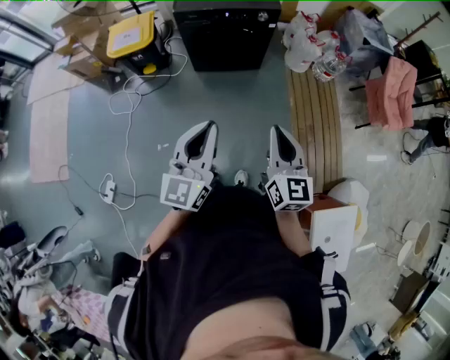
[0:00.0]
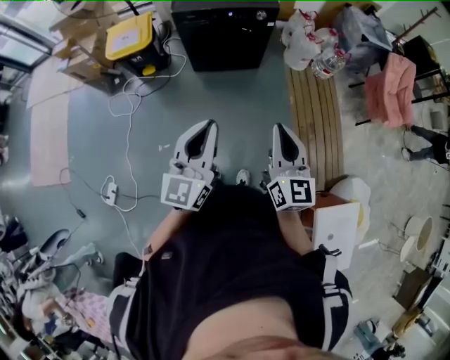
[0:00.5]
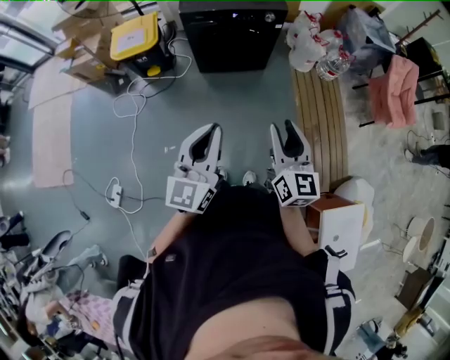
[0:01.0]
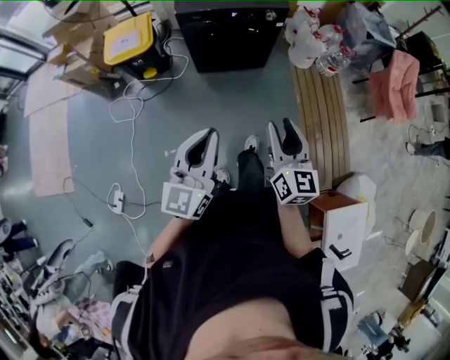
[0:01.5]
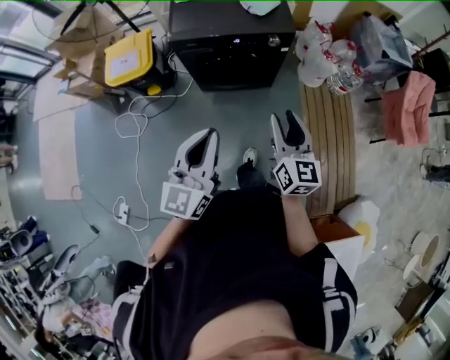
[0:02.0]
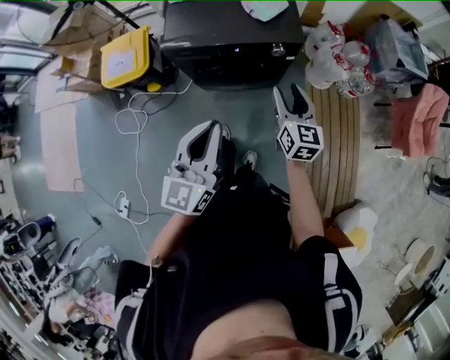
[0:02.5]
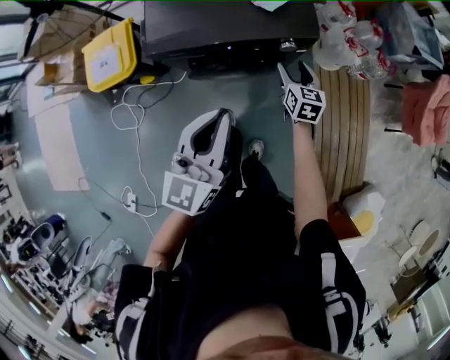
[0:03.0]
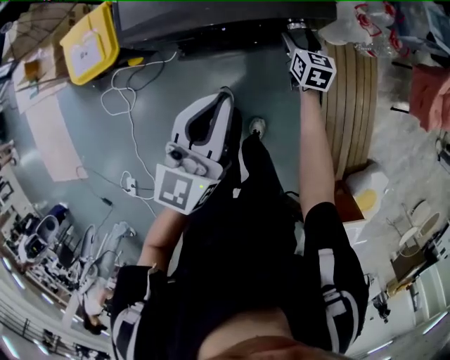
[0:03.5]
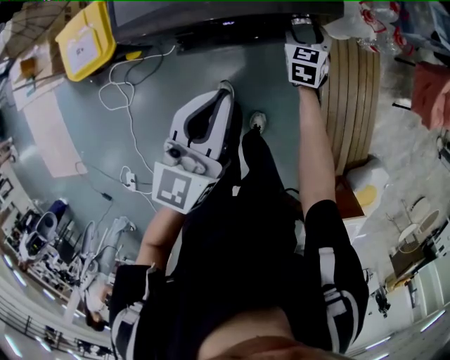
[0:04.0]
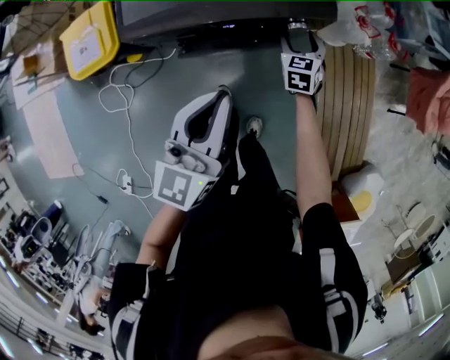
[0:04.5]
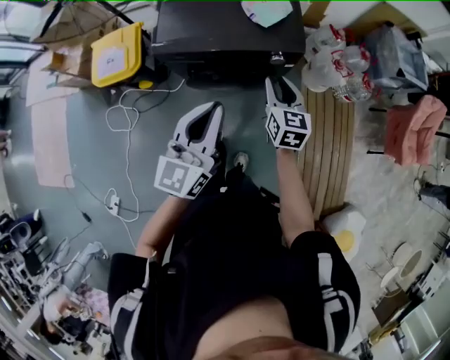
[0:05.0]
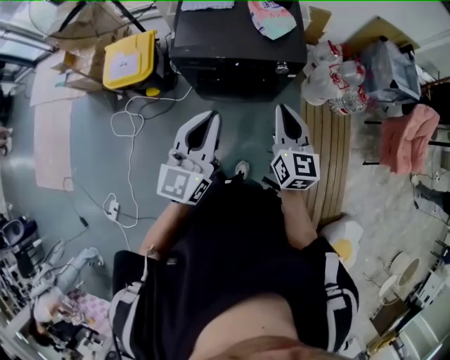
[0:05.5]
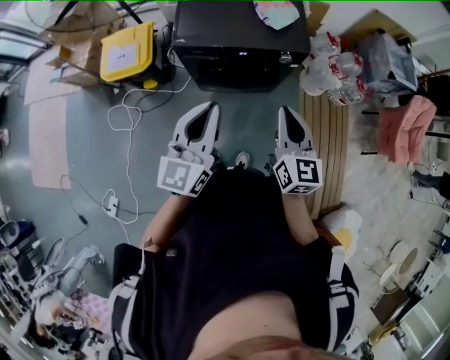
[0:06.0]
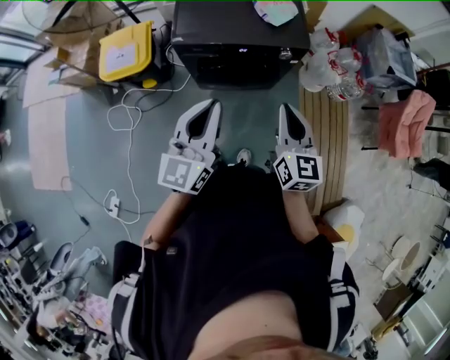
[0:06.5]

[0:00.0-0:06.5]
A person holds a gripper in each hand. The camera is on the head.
0:00.0 to 0:02.0: The grippers both shift forward by about 35 cm. The right gripper opens.
0:02.0 to 0:04.5: The two grippers travel together, forward, some 50 cm. The right gripper travels downward by some 40 cm, angles its fingers downward, by approximately 30 degrees, and opens its fingers. Meanwhile the left gripper moves downward, approximately 20 cm.
0:04.5 to 0:06.5: The left gripper is displaced backward and upward by roughly 30 cm. The right gripper moves upward and backward, about 60 cm, changes its angle by some 30 degrees, and closes.

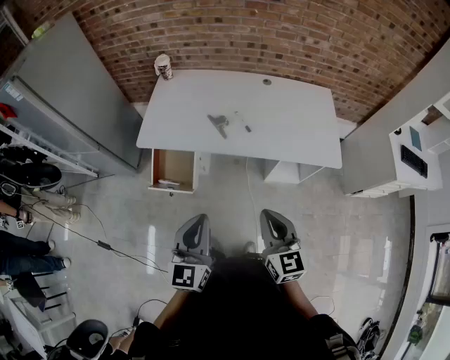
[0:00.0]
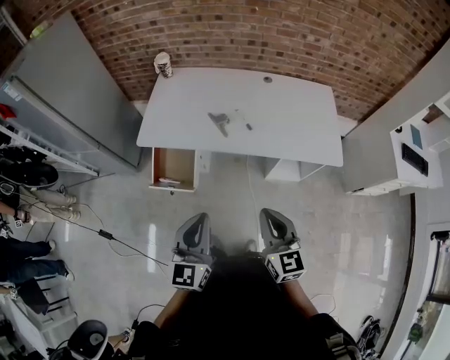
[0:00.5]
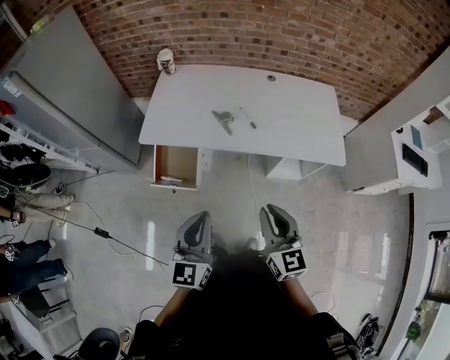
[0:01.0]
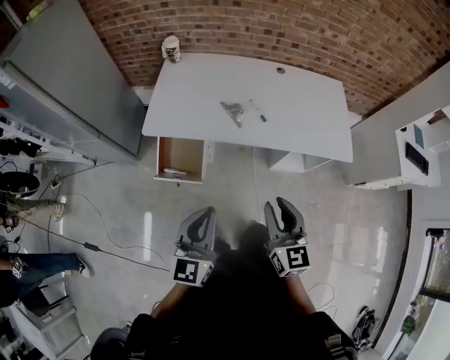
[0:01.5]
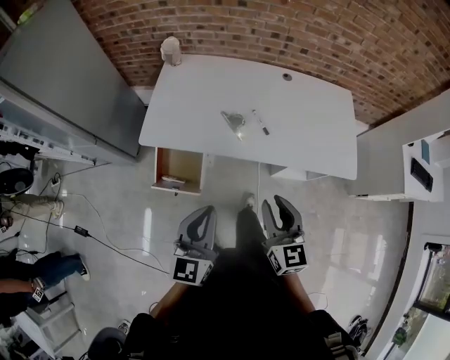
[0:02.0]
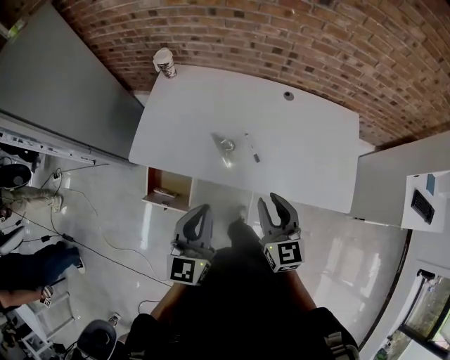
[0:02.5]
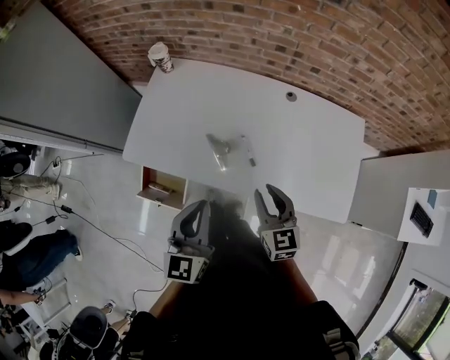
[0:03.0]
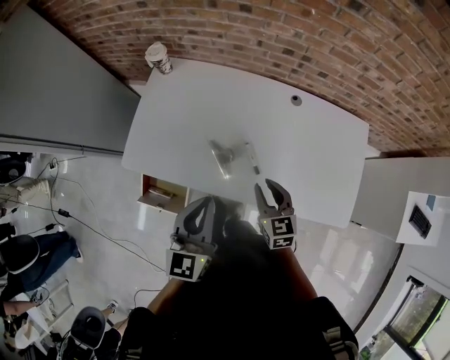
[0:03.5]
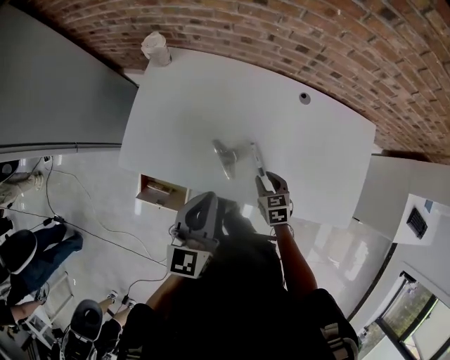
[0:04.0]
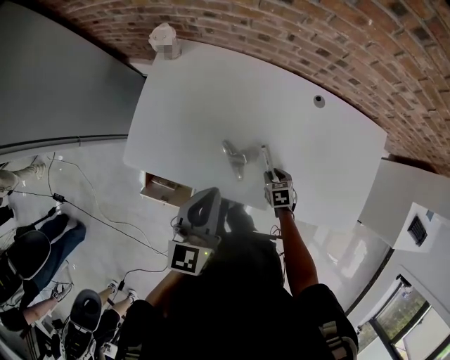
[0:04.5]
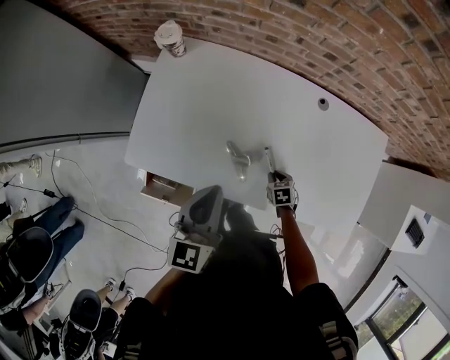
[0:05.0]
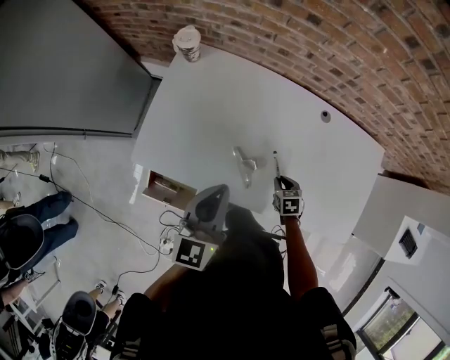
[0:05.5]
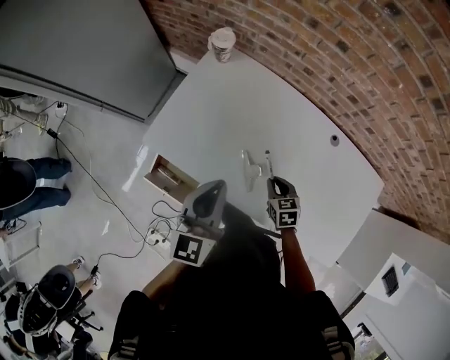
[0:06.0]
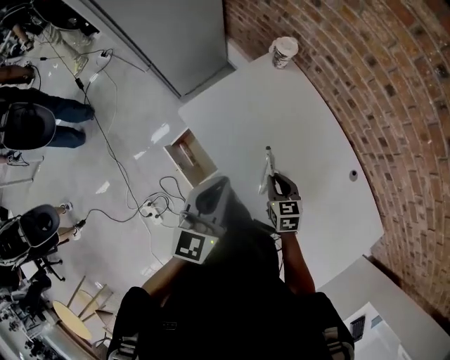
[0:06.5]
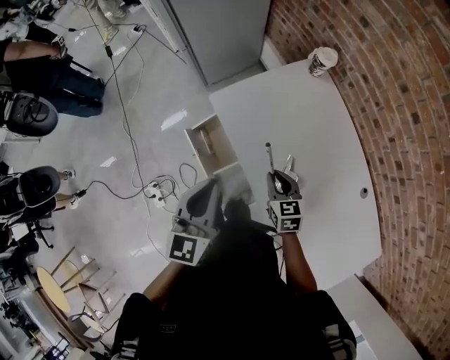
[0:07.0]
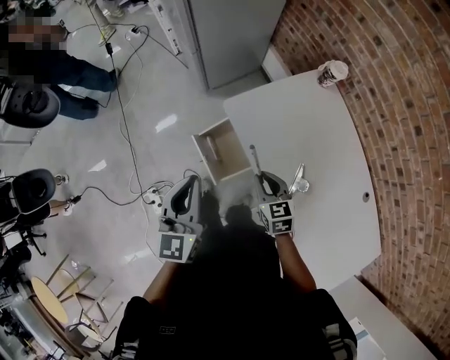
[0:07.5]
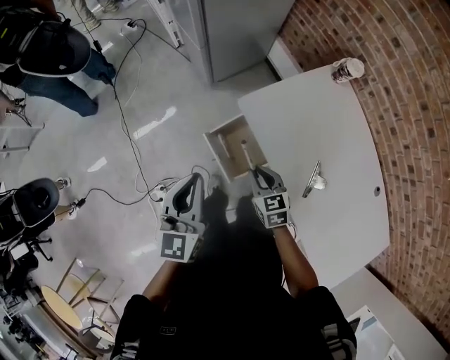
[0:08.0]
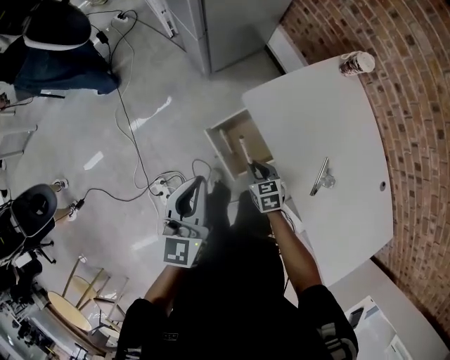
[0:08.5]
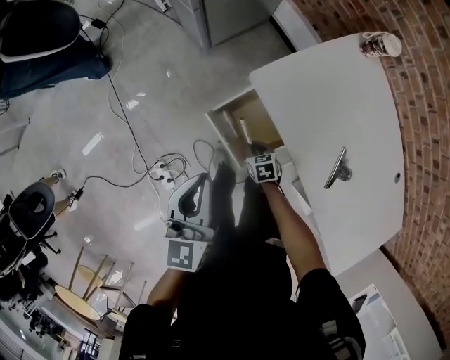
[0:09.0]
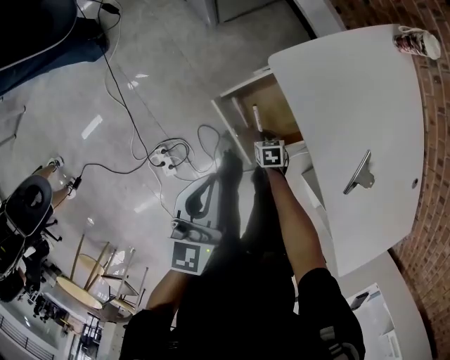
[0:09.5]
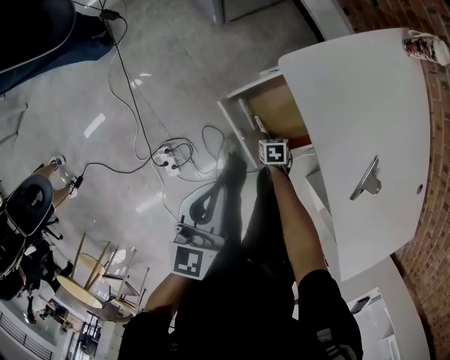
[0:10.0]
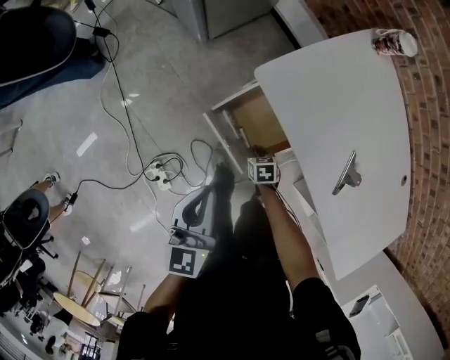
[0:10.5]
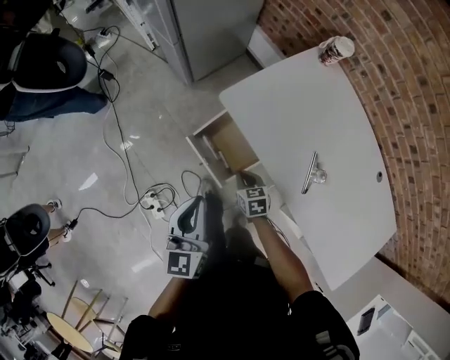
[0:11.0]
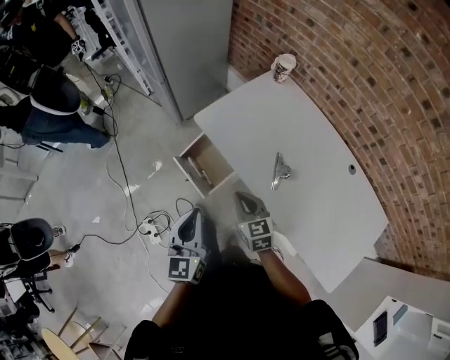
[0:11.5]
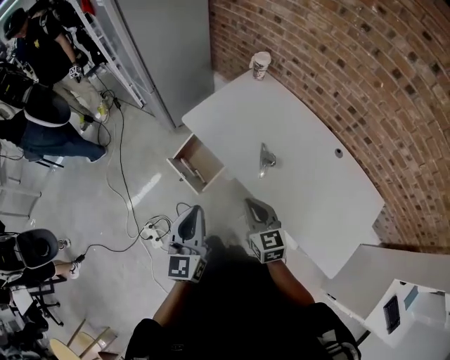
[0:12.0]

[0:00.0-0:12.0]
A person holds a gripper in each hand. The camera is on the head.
0:00.0 to 0:02.0: The left gripper travels forward by about 10 cm; the right gripper heads forward and to the left, covering roughly 15 cm, and opens up.
0:02.0 to 0:04.0: The left gripper shifts approximately 30 cm forward, while the right gripper travels forward and downward by approximately 40 cm, and tips its fingers downward by some 40 degrees.
0:04.0 to 0:06.0: The right gripper travels to the left and forward by approximately 10 cm, and moves approximately 15 cm downward and comes back. Meanwhile the left gripper moves to the left, about 5 cm.
0:06.0 to 0:08.0: The left gripper changes place by some 35 cm, and changes its angle by roughly 40 degrees. Meanwhile the right gripper changes place by approximately 40 cm, and rotates about 40 degrees.
0:08.0 to 0:10.0: The left gripper goes some 20 cm downward, while the right gripper goes approximately 40 cm downward, and tilts its fingers about 30 degrees downward.
0:10.0 to 0:12.0: The right gripper moves upward, about 50 cm, and tips its fingers upward by approximately 50 degrees, while the left gripper changes place by roughly 35 cm, and rotates about 20 degrees.

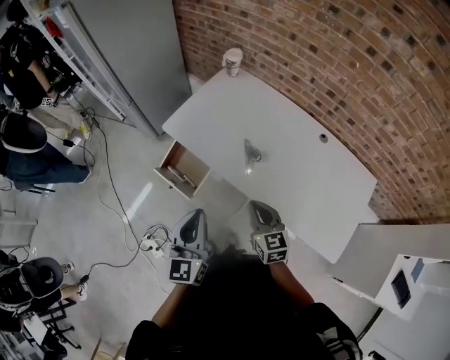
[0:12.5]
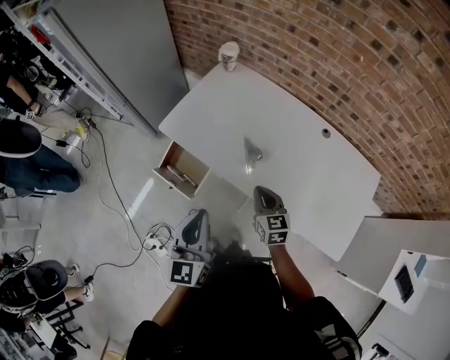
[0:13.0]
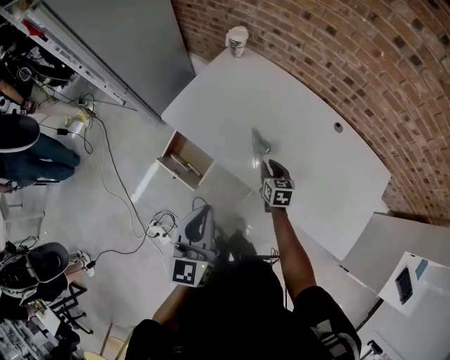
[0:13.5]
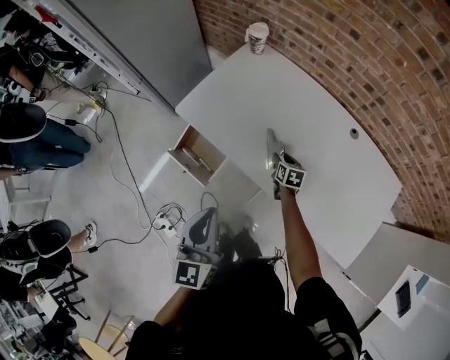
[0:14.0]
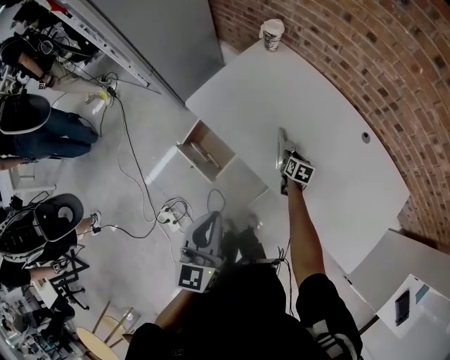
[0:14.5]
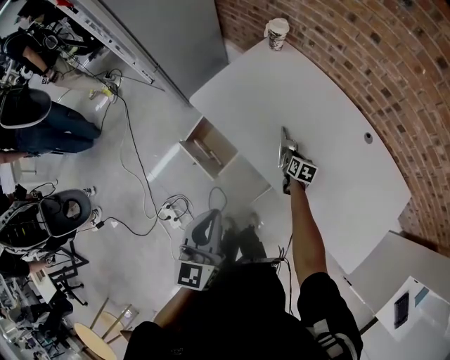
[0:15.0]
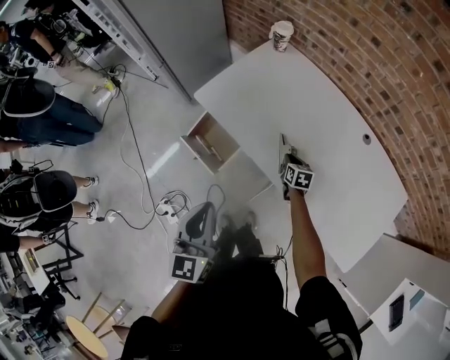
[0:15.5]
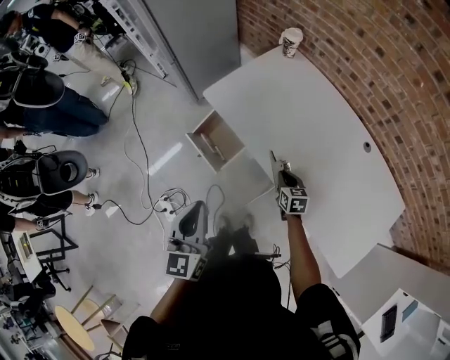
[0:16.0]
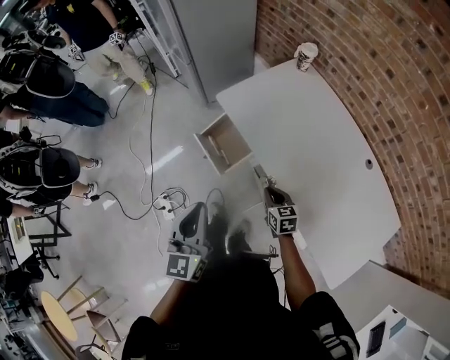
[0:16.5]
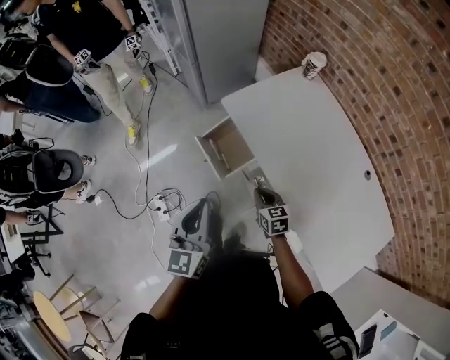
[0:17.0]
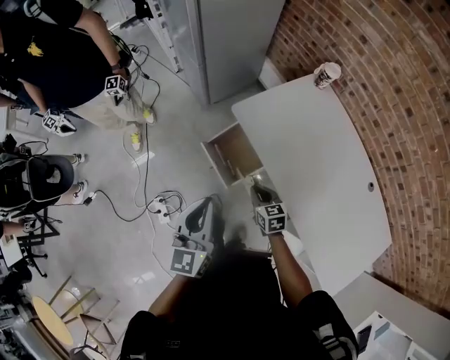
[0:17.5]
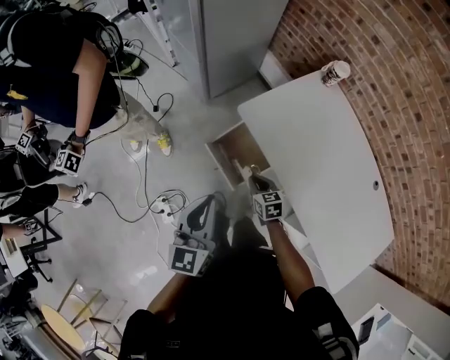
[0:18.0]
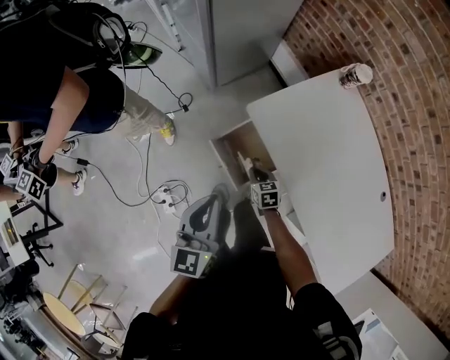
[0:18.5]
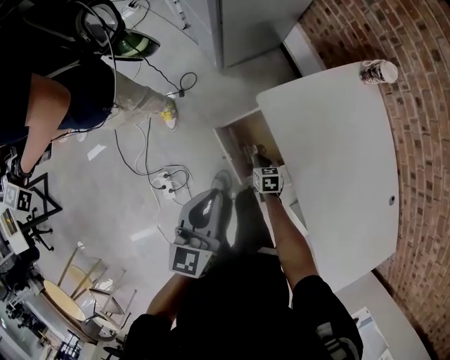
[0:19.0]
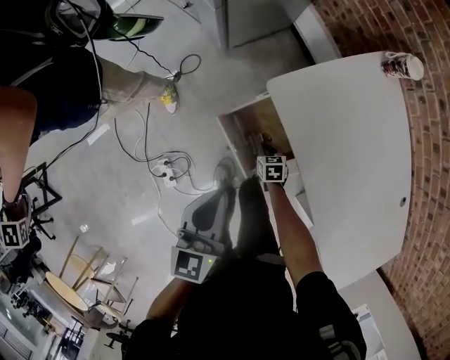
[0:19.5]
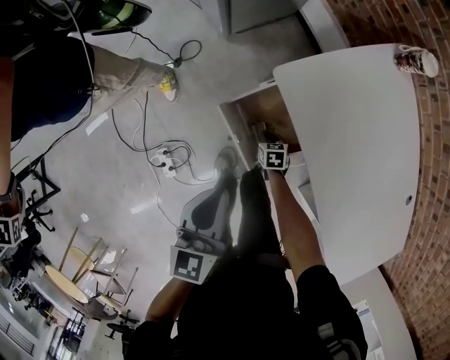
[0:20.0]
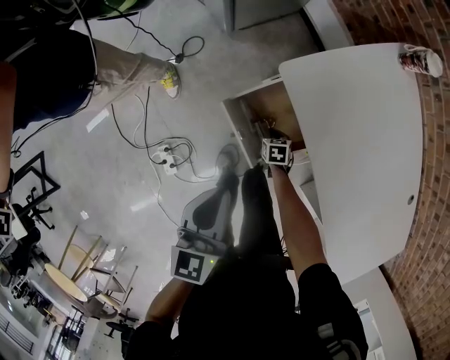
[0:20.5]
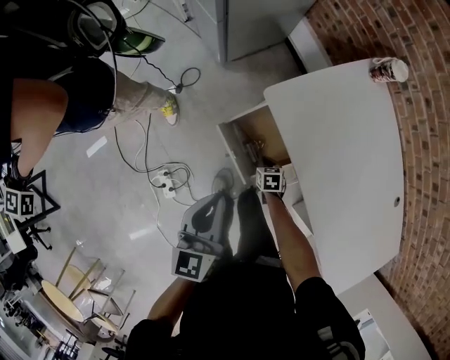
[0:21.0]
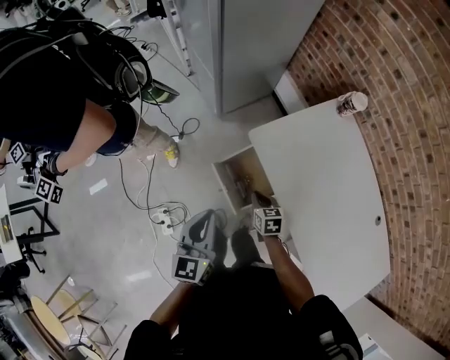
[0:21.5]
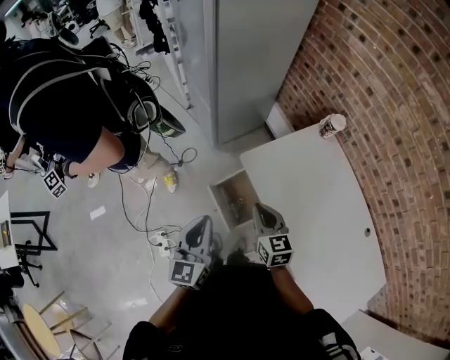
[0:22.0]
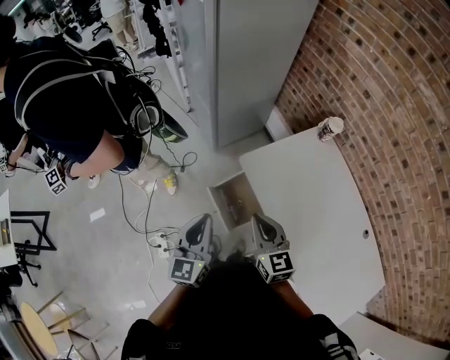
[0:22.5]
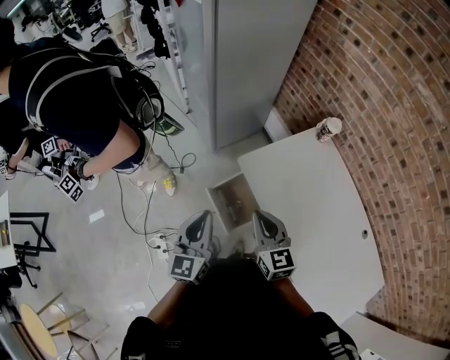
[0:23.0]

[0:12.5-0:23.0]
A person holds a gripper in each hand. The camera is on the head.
0:12.5 to 0:14.5: The right gripper is displaced downward and forward by approximately 35 cm, turns by roughly 40 degrees, and opens its fingers.
0:14.5 to 0:16.5: The right gripper moves to the left, backward and upward, some 25 cm, swivels roughly 40 degrees, and closes up, while the left gripper moves to the left and backward, some 10 cm.
0:16.5 to 0:19.0: The two grippers go approximately 30 cm forward, downward and to the left. The right gripper changes its angle by some 20 degrees.
0:19.0 to 0:21.0: The right gripper is displaced downward by roughly 5 cm.
0:21.0 to 0:23.0: The left gripper is displaced upward by about 15 cm, while the right gripper is displaced upward by roughly 50 cm, and angles its fingers upward, by roughly 50 degrees.
